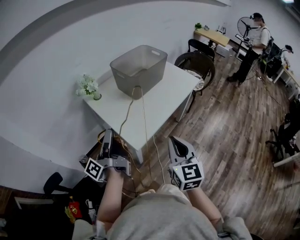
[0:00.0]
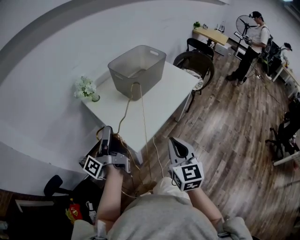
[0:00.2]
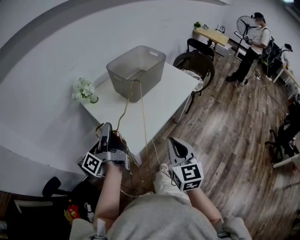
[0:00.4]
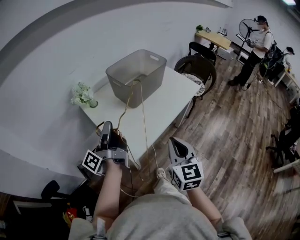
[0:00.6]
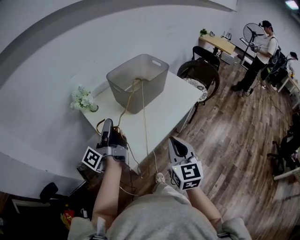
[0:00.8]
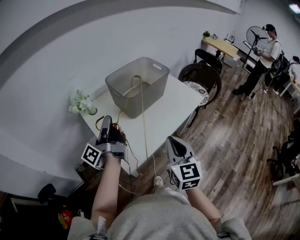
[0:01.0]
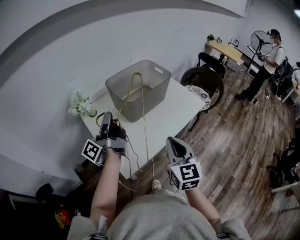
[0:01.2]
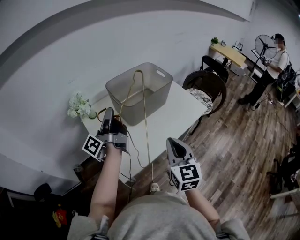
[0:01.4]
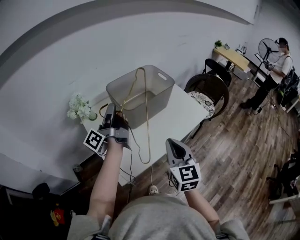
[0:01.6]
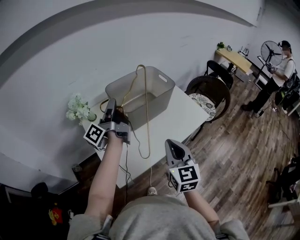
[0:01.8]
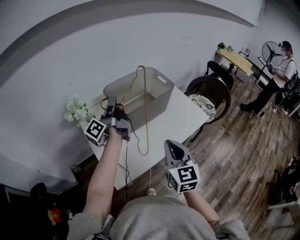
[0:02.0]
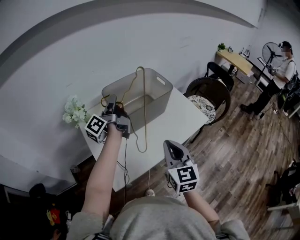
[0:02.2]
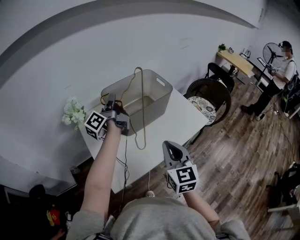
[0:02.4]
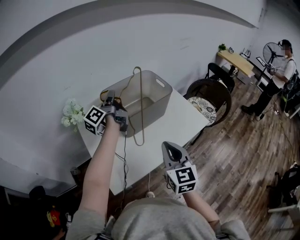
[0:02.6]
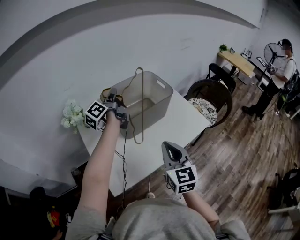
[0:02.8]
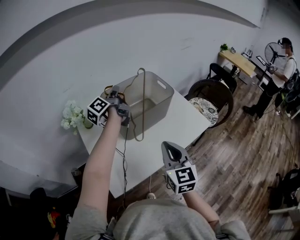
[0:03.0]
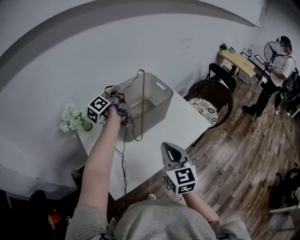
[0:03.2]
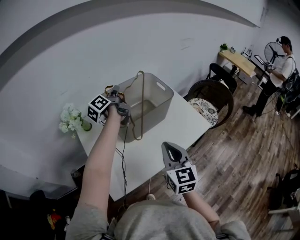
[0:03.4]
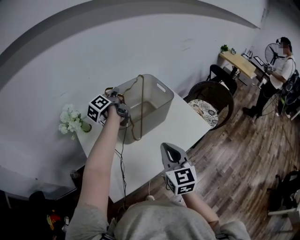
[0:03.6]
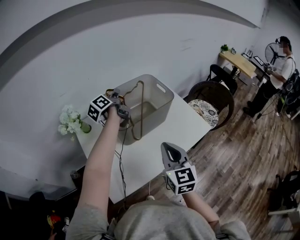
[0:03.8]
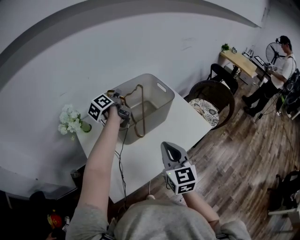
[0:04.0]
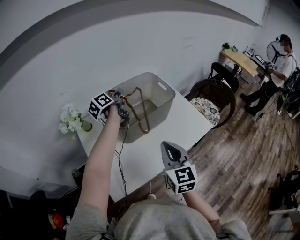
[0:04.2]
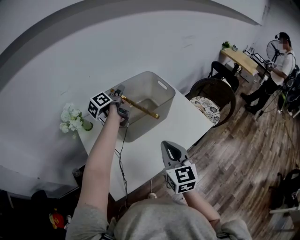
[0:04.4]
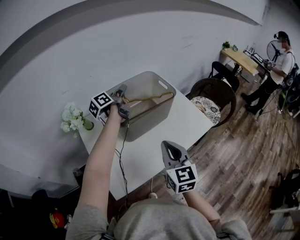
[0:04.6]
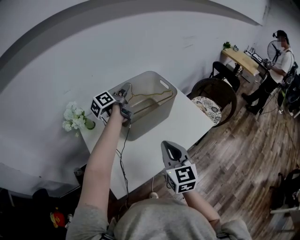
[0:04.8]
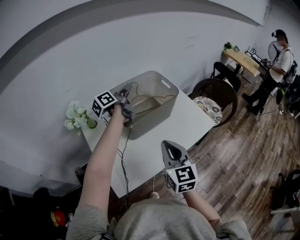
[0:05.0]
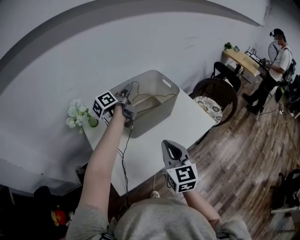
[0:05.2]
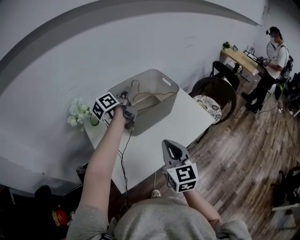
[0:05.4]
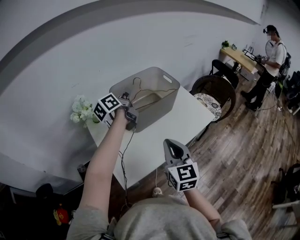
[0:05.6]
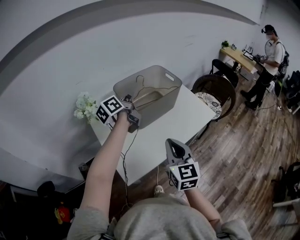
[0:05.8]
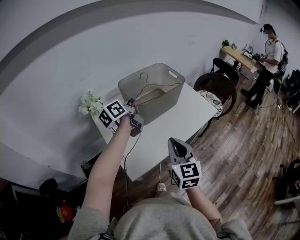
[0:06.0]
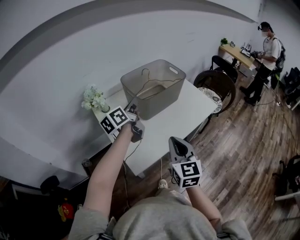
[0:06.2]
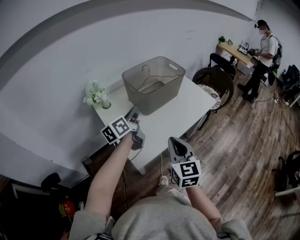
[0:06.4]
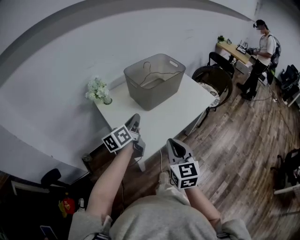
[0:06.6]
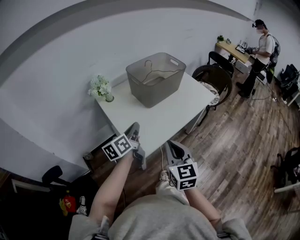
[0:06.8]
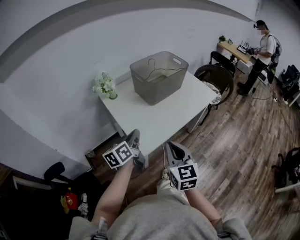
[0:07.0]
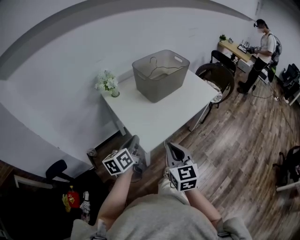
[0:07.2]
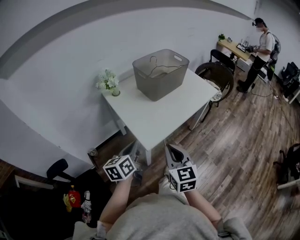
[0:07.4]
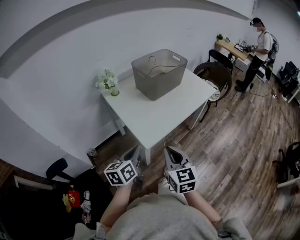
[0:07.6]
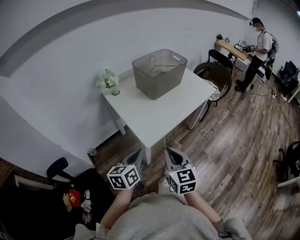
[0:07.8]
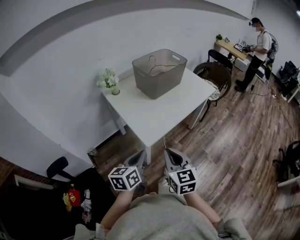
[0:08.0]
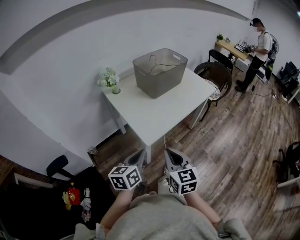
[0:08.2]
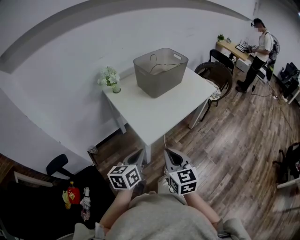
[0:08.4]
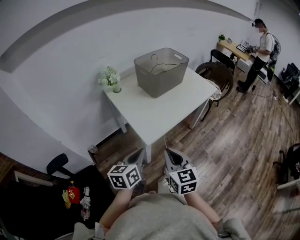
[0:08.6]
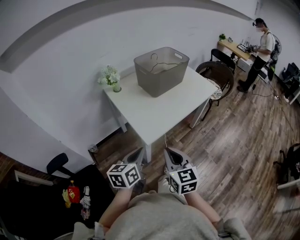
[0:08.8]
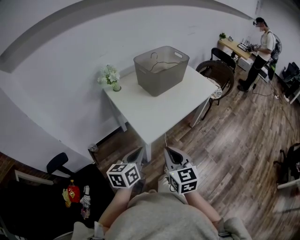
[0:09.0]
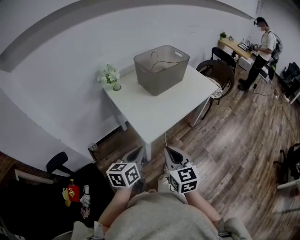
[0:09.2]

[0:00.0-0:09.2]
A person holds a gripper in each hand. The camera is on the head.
0:00.0 to 0:01.6: The left gripper goes about 30 cm forward, while the right gripper shifts approximately 25 cm forward and to the right.
0:01.6 to 0:03.0: The left gripper travels forward by approximately 20 cm, while the right gripper shifts about 5 cm forward.
0:03.0 to 0:04.6: The left gripper shifts by approximately 5 cm, and opens its fingers.
0:04.6 to 0:06.2: The left gripper shifts some 20 cm backward, and closes; the right gripper travels backward and to the left by roughly 15 cm.
0:06.2 to 0:07.6: The left gripper heads backward, covering some 35 cm, and swivels about 20 degrees. The right gripper travels backward and to the left by approximately 20 cm.
0:07.6 to 0:09.2: The grippers move only a little.

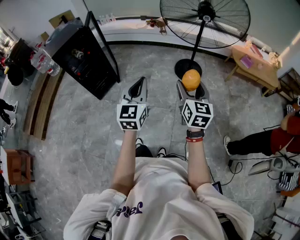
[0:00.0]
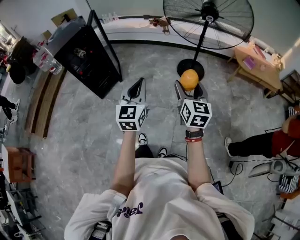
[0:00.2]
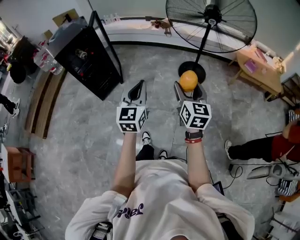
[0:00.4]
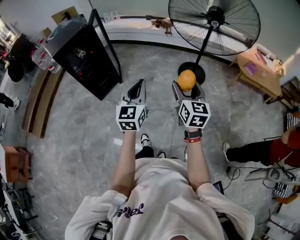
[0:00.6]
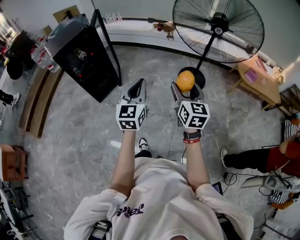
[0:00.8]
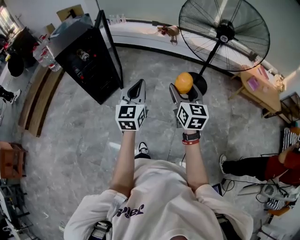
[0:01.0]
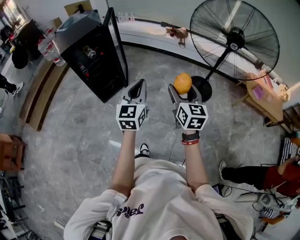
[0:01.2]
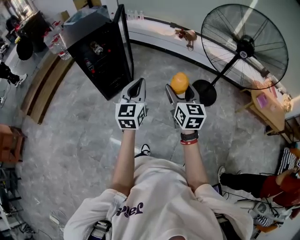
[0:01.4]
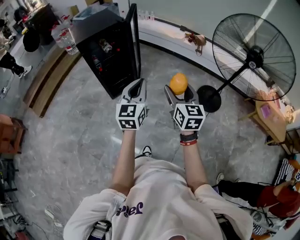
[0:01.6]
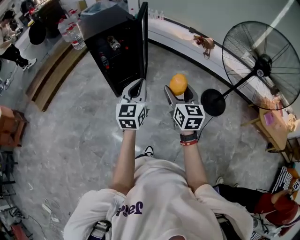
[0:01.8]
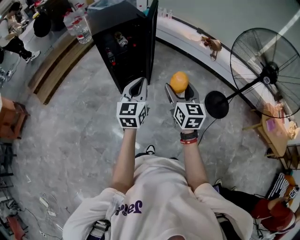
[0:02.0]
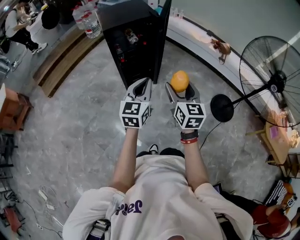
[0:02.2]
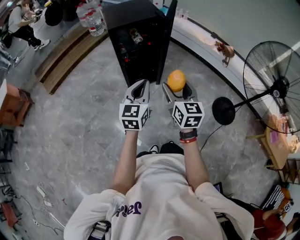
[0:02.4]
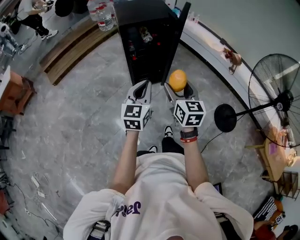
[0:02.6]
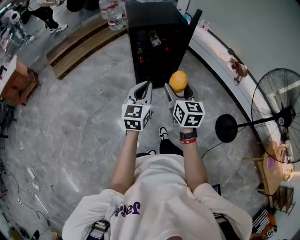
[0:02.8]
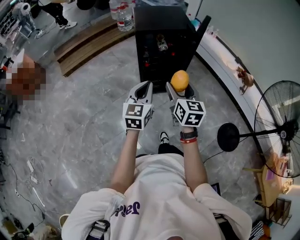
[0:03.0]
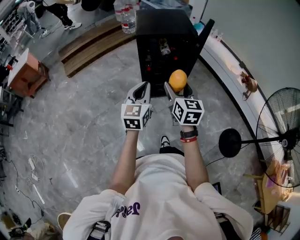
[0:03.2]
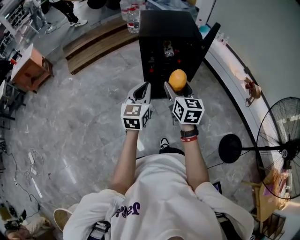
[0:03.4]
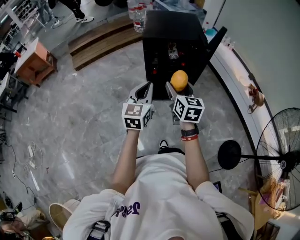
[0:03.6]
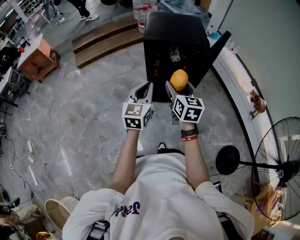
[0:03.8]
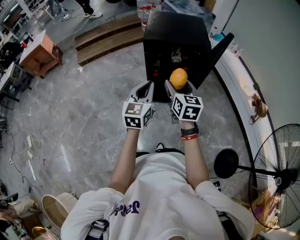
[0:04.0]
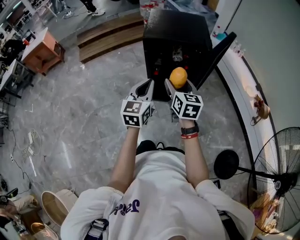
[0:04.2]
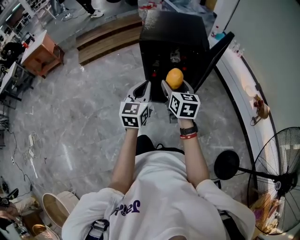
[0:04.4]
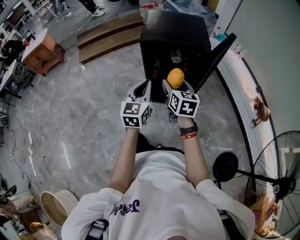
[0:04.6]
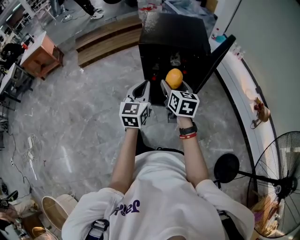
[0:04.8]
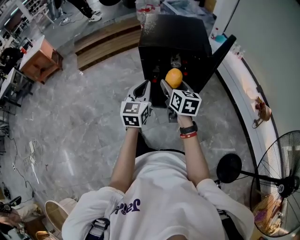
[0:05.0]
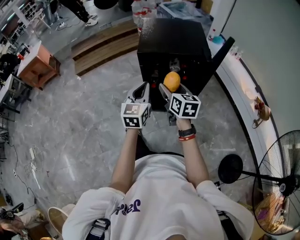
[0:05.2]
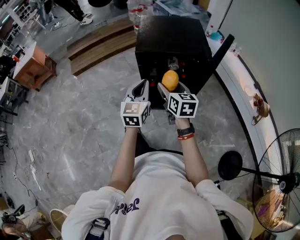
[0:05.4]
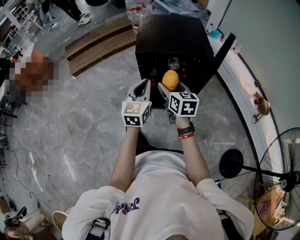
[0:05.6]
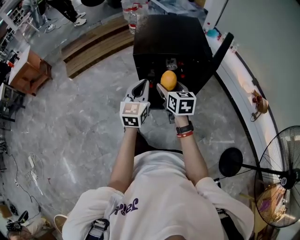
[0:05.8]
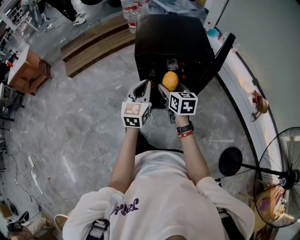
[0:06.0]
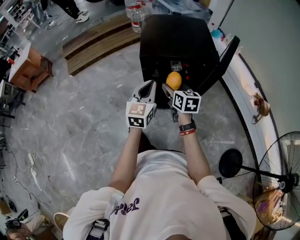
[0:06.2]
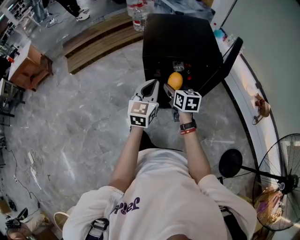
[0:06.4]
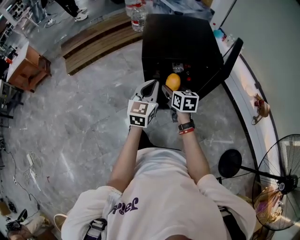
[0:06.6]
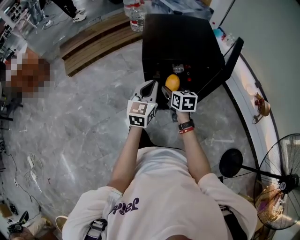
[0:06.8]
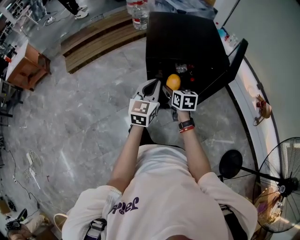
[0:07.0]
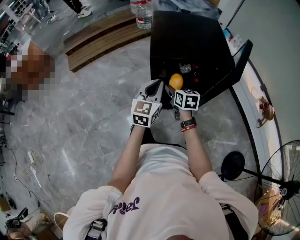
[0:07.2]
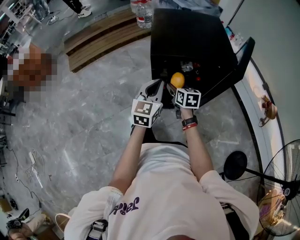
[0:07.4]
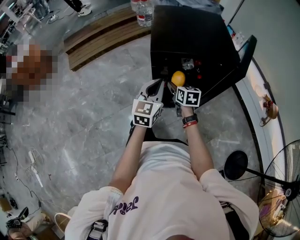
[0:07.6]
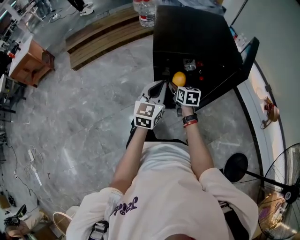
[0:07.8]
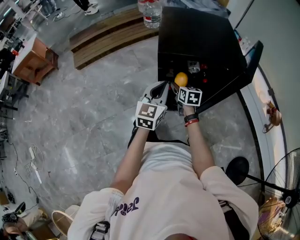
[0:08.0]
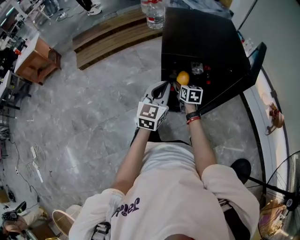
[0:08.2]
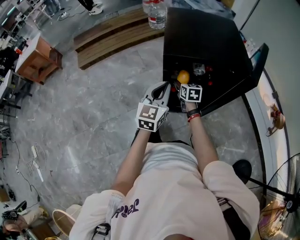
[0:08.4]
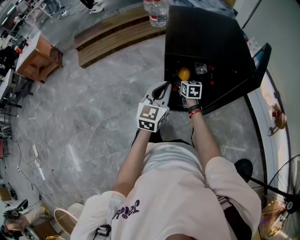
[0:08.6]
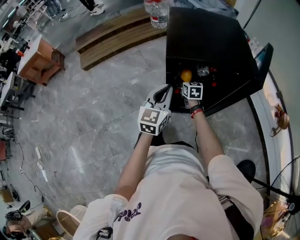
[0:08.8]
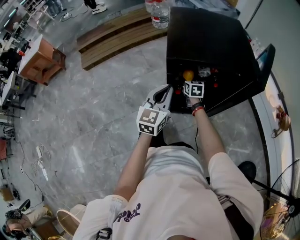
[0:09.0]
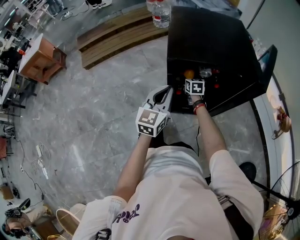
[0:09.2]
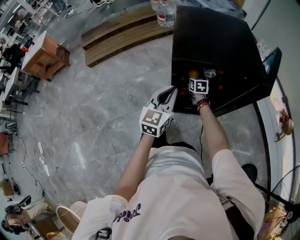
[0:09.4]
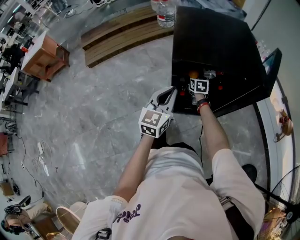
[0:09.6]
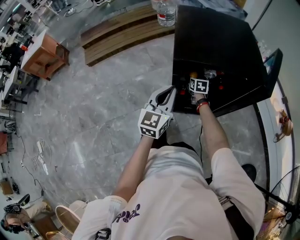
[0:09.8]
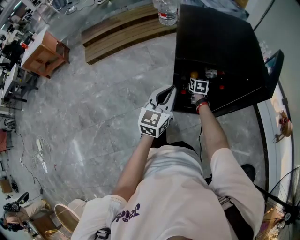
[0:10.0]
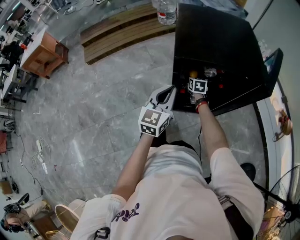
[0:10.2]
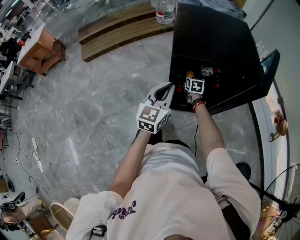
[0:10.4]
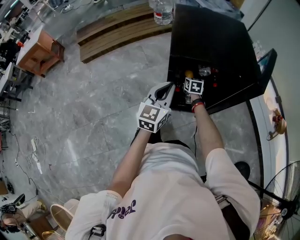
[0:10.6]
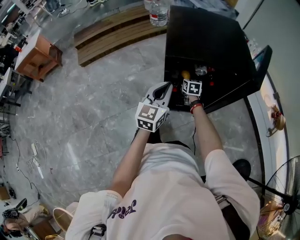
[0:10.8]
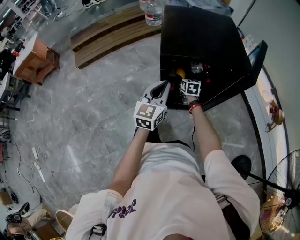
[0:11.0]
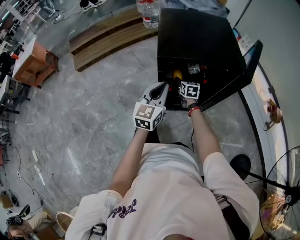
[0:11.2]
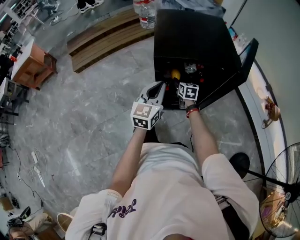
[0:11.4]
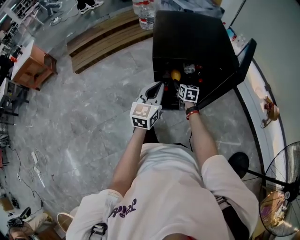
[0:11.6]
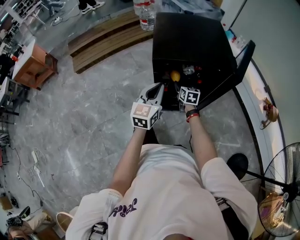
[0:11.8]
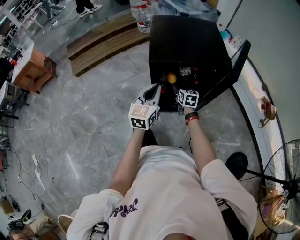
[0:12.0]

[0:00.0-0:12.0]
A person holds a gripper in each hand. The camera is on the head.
0:00.0 to 0:01.6: The two grippers go about 35 cm to the left and forward. The right gripper swivels some 30 degrees.
0:01.6 to 0:03.0: The grippers both shift to the left and forward by approximately 30 cm. The left gripper rotates approximately 20 degrees. Meanwhile the right gripper rotates some 20 degrees.
0:03.0 to 0:04.4: The left gripper travels forward and to the right by some 15 cm, while the right gripper heads forward, covering some 20 cm.
0:04.4 to 0:06.0: The left gripper travels forward by about 15 cm; the right gripper goes about 15 cm forward and downward.
0:06.0 to 0:07.6: The left gripper goes some 10 cm downward and forward. The right gripper goes some 20 cm downward and forward.
0:07.6 to 0:09.0: The right gripper moves forward and downward, roughly 15 cm.
0:09.0 to 0:10.4: There are only small adjustments of the grippers.
0:10.4 to 0:12.0: The right gripper moves upward, backward and to the right, approximately 20 cm, while the left gripper is displaced upward by approximately 5 cm.

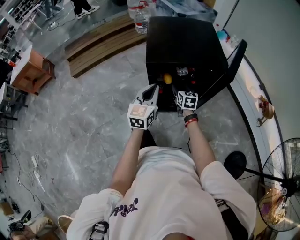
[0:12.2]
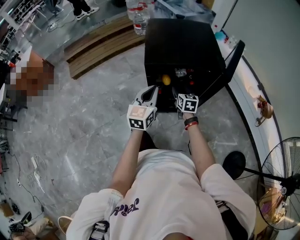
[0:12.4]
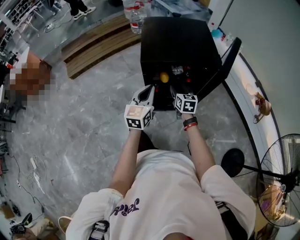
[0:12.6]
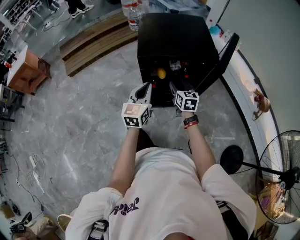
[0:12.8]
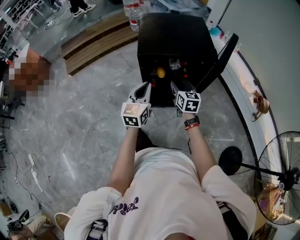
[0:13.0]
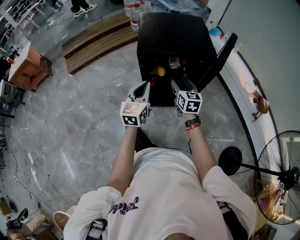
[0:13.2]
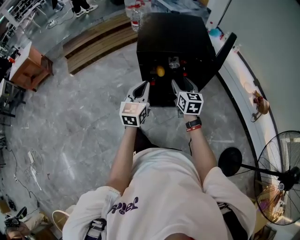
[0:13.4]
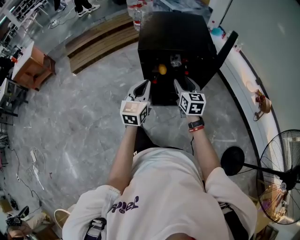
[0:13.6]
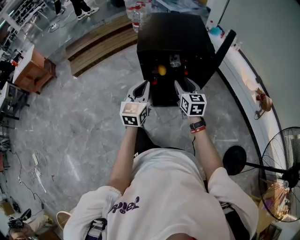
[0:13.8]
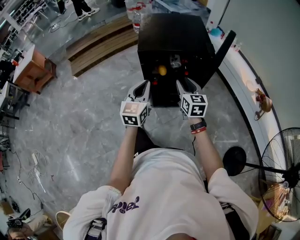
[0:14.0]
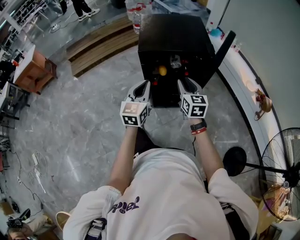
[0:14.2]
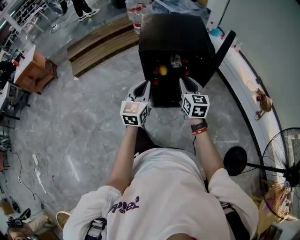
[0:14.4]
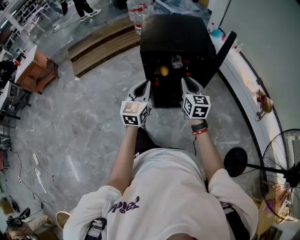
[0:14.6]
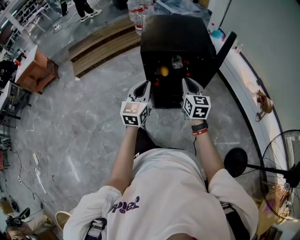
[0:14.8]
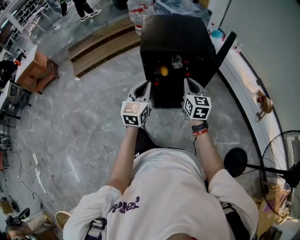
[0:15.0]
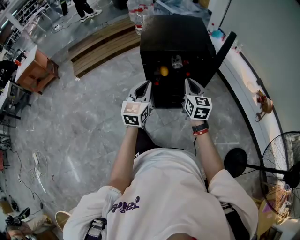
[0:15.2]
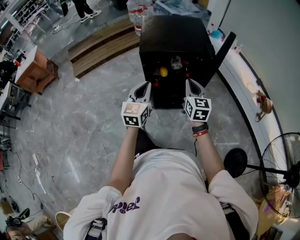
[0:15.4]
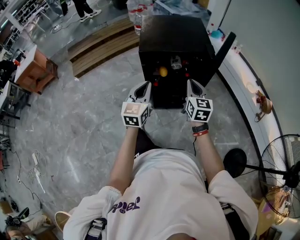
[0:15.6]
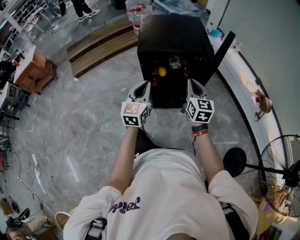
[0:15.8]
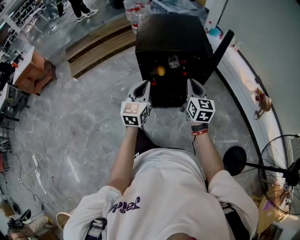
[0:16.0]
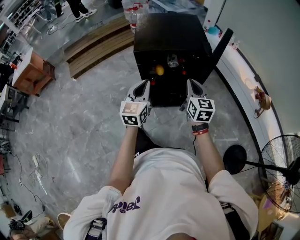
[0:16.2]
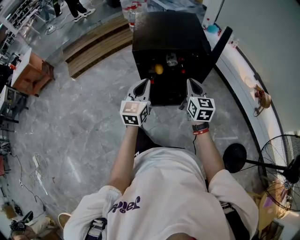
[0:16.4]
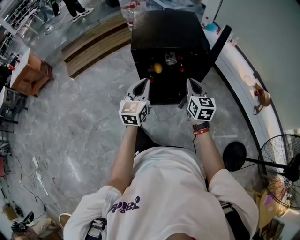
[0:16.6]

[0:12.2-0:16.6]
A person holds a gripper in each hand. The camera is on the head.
0:12.2 to 0:13.6: The left gripper heads backward, covering roughly 10 cm. Meanwhile the right gripper goes roughly 20 cm upward and backward.
0:13.6 to 0:15.2: The right gripper changes place by some 5 cm, and closes.
0:15.2 to 0:16.6: The grippers make only small movements.
